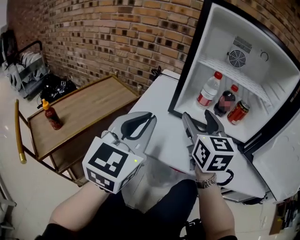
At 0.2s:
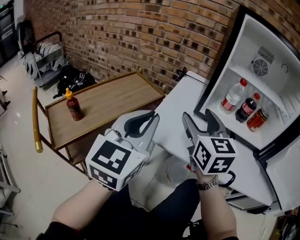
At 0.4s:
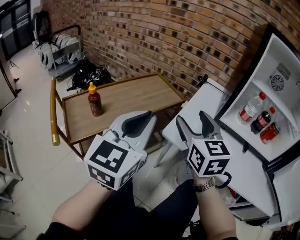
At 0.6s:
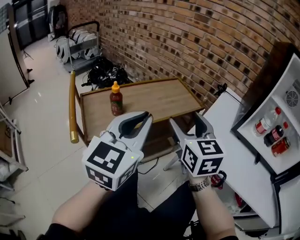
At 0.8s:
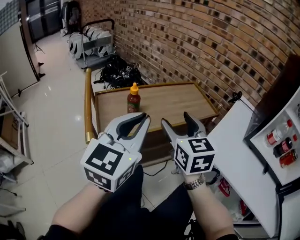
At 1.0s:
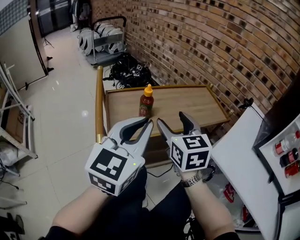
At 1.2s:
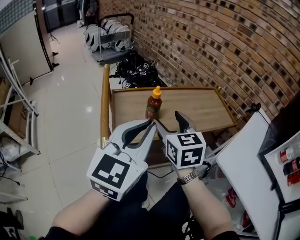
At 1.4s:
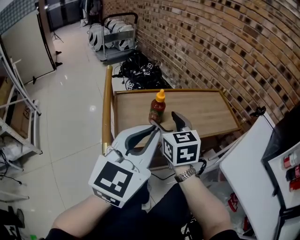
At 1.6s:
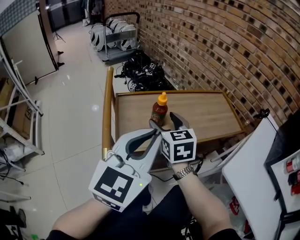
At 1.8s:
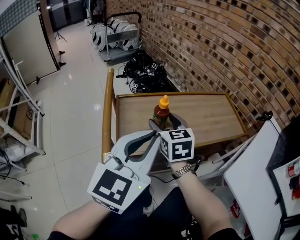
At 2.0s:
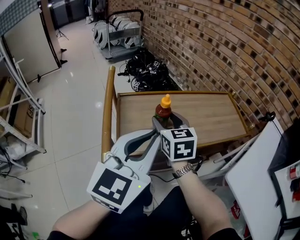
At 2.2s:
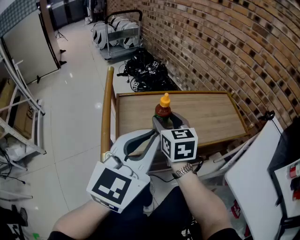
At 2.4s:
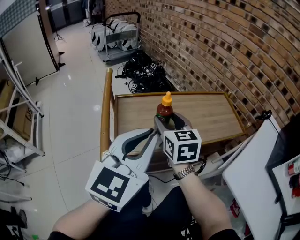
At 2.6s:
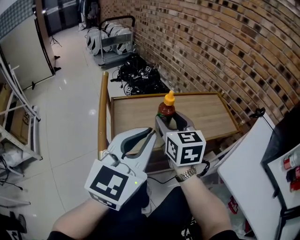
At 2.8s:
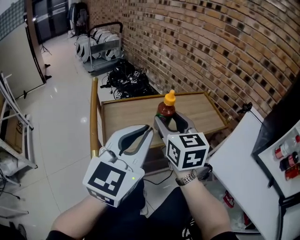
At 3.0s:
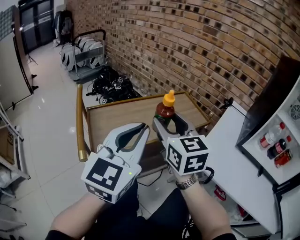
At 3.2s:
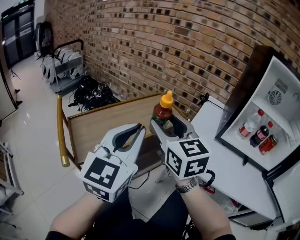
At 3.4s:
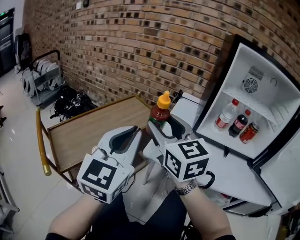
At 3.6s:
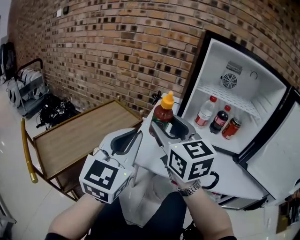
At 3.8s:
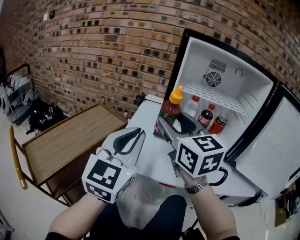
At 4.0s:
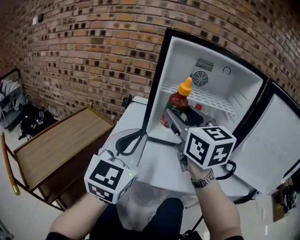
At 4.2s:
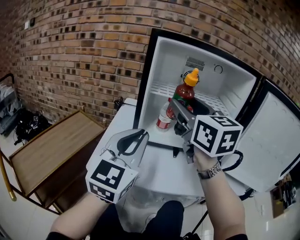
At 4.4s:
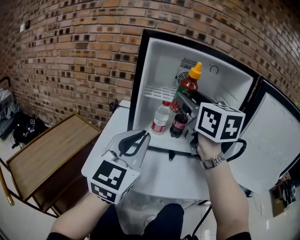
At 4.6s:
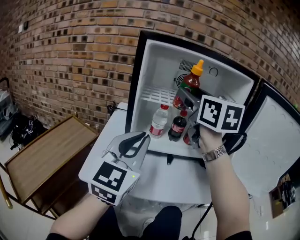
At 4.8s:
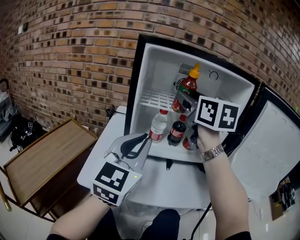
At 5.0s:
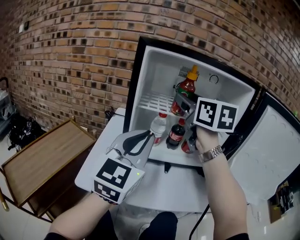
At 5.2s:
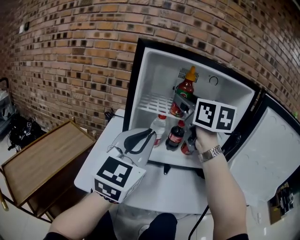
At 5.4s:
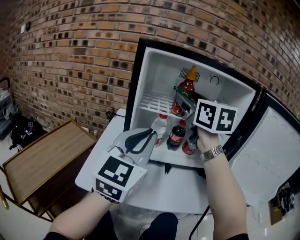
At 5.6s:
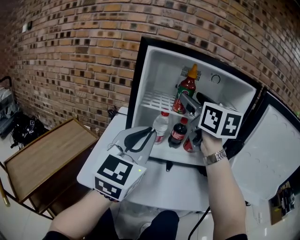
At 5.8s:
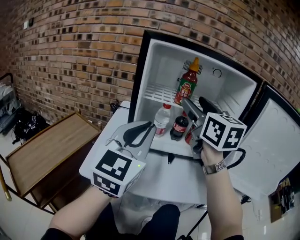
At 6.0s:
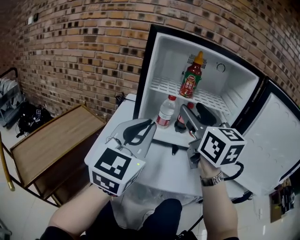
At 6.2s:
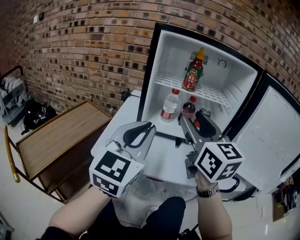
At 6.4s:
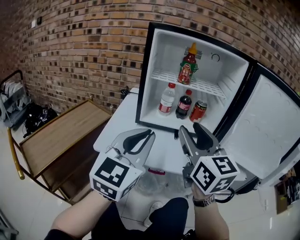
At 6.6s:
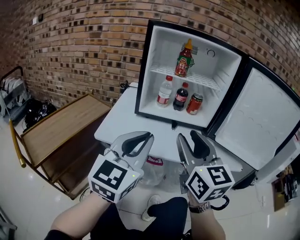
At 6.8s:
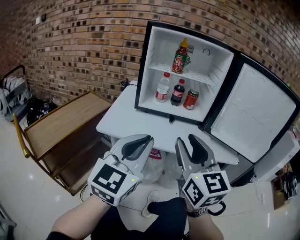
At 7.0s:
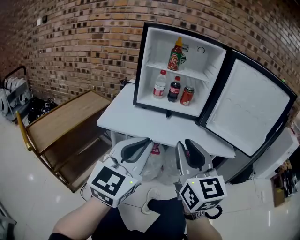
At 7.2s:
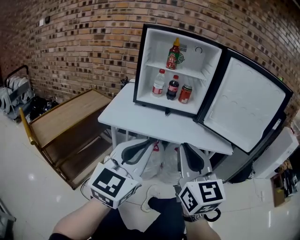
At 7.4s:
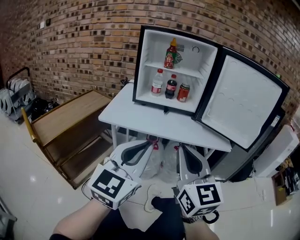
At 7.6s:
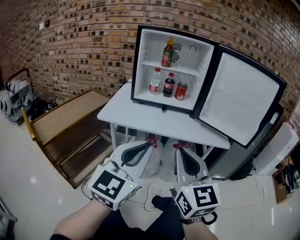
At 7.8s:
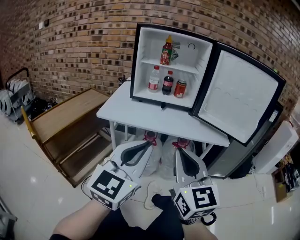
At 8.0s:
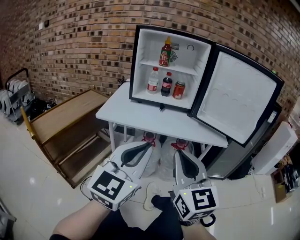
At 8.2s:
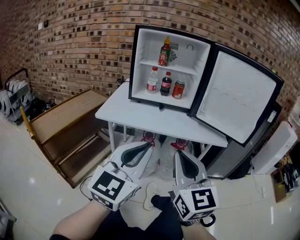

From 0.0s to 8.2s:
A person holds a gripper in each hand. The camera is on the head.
From 0.0s to 1.6s: The right gripper shifts by about 60 cm, and rotates some 50 degrees; the left gripper shifts by some 35 cm, and swivels approximately 40 degrees.
From 1.6s to 3.2s: The right gripper travels to the right, upward and backward by some 30 cm, and changes its angle by some 30 degrees; the left gripper heads to the right and upward, covering approximately 15 cm.
From 3.2s to 5.0s: The left gripper shifts by about 40 cm, and rotates roughly 30 degrees. Meanwhile the right gripper moves about 50 cm, and turns by approximately 30 degrees.
From 5.0s to 6.6s: The left gripper heads backward, covering approximately 20 cm. Meanwhile the right gripper shifts roughly 35 cm backward and downward.
From 6.6s to 8.2s: The right gripper heads backward, covering approximately 20 cm, and closes. Meanwhile the left gripper shifts roughly 20 cm backward and to the right.

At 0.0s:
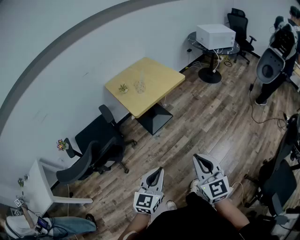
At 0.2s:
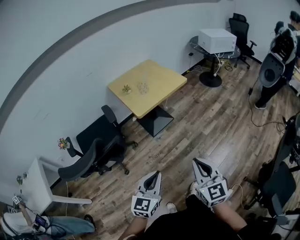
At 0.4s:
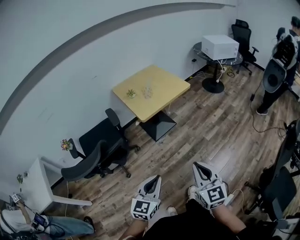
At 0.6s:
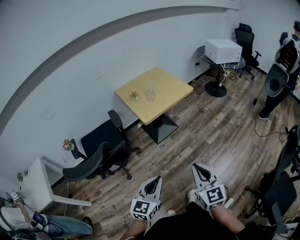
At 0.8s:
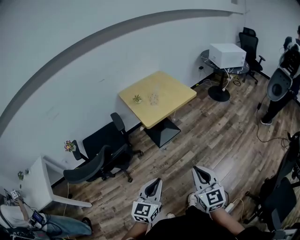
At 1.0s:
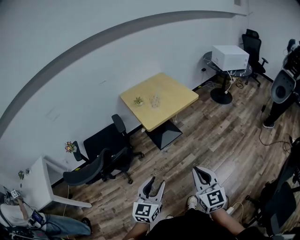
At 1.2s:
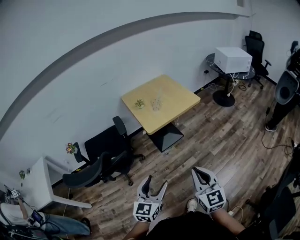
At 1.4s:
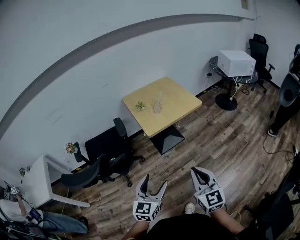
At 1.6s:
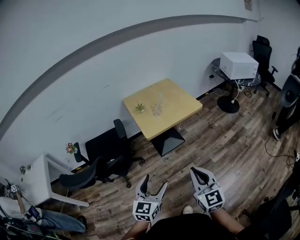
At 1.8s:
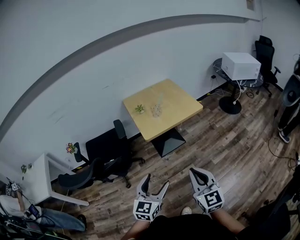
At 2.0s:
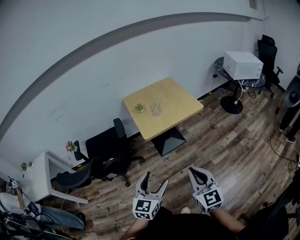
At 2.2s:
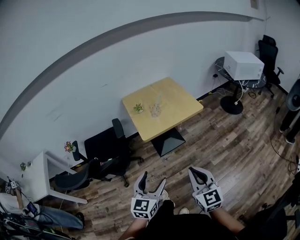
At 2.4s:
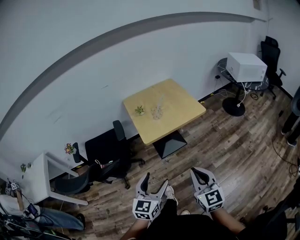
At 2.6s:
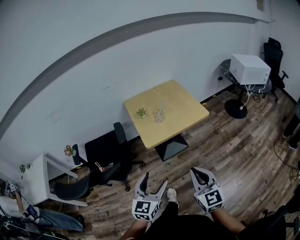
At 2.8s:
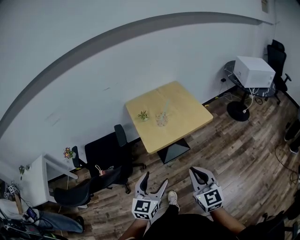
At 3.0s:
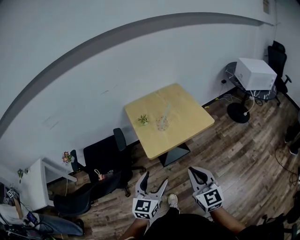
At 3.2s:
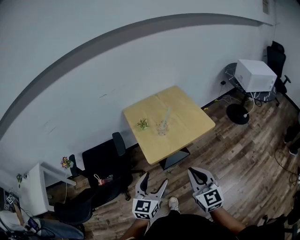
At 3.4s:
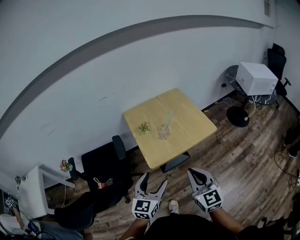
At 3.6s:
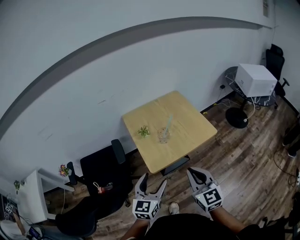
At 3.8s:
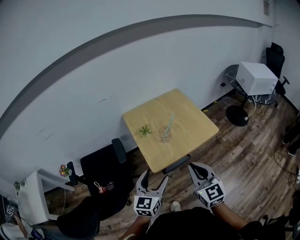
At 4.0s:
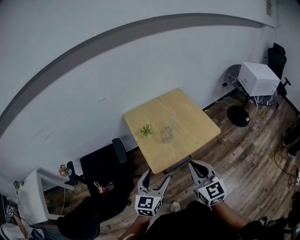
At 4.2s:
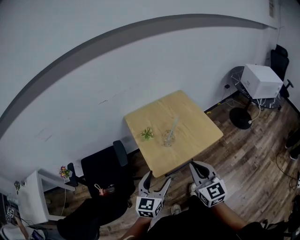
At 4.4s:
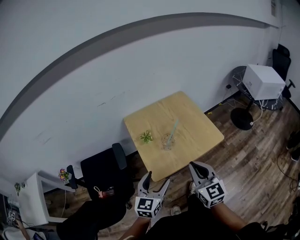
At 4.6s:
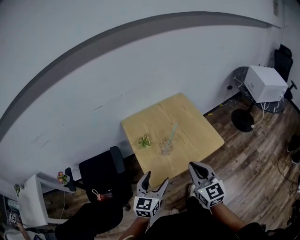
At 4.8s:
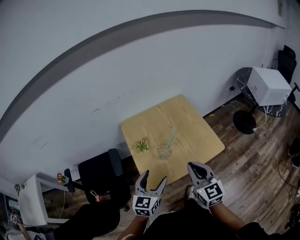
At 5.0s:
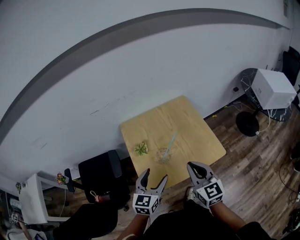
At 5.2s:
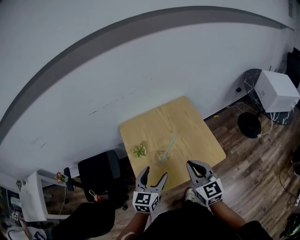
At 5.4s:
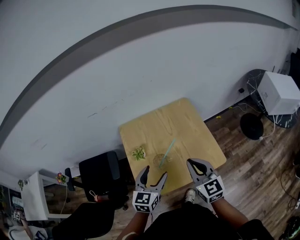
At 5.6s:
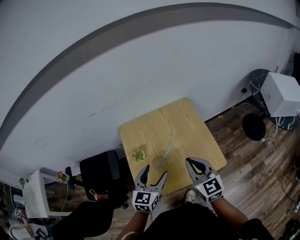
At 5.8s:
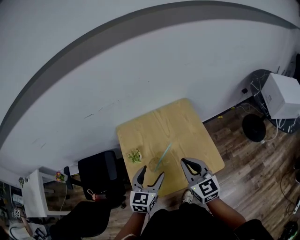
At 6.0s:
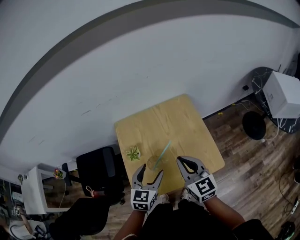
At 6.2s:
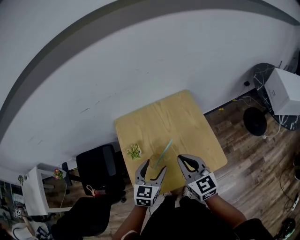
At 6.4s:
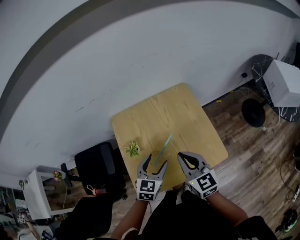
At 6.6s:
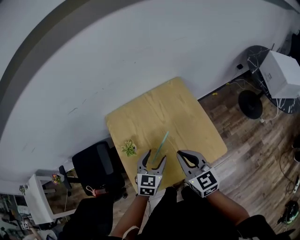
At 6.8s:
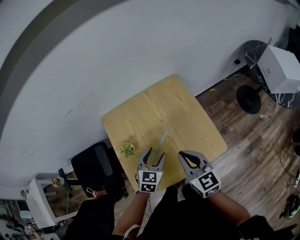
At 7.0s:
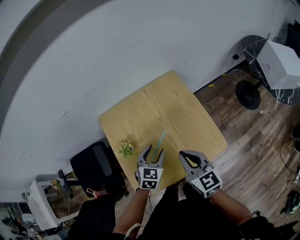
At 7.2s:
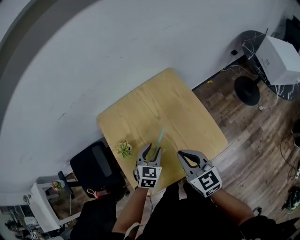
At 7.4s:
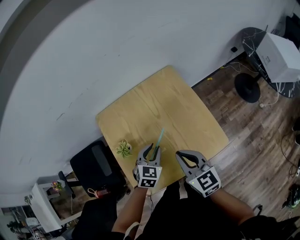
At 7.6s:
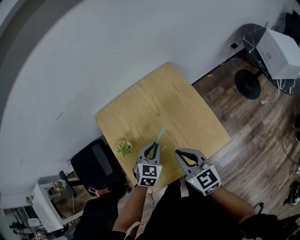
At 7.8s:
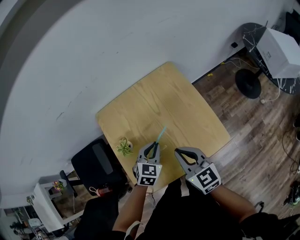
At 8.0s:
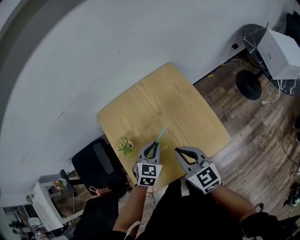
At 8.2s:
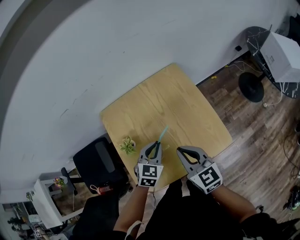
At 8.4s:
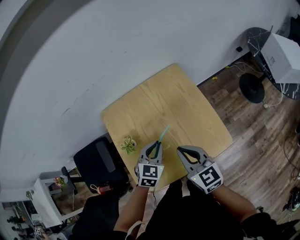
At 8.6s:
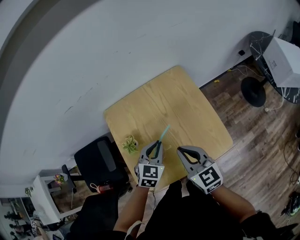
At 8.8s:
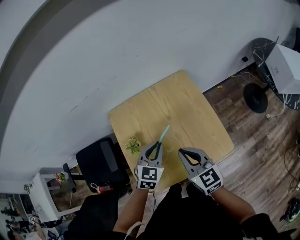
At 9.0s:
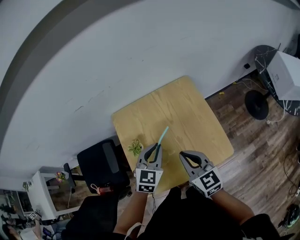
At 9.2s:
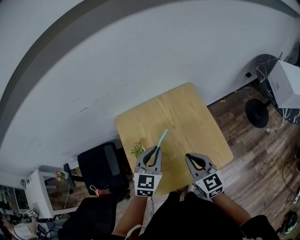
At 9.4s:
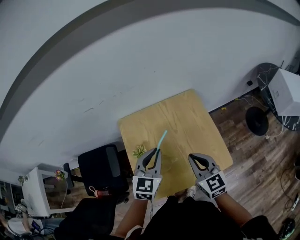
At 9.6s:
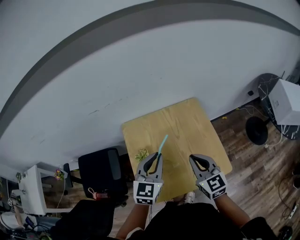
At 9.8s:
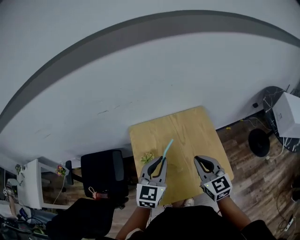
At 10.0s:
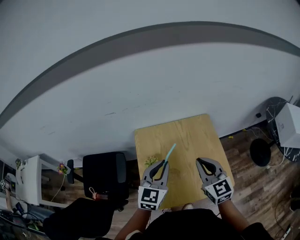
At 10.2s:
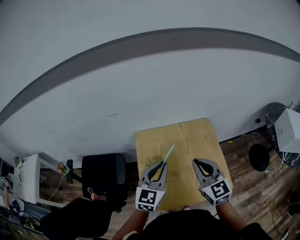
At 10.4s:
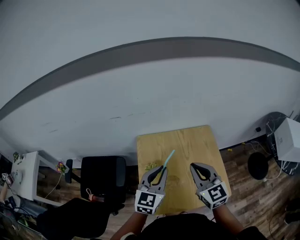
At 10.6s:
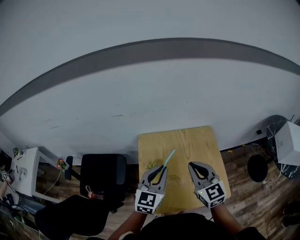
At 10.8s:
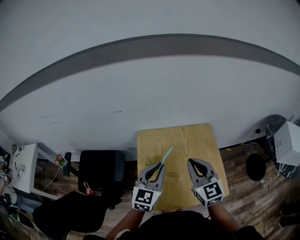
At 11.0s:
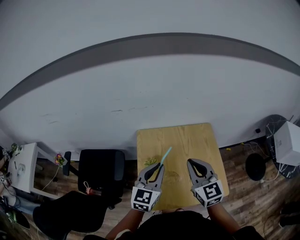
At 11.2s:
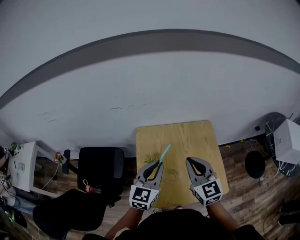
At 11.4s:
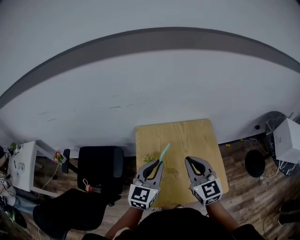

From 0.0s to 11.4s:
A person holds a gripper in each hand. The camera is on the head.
From 0.0s to 1.4s: Both grippers move forward, some 5 cm. The left gripper opens up.
From 1.4s to 2.8s: Both grippers move forward, about 20 cm.
From 2.8s to 4.2s: The grippers both shift forward by about 20 cm.
From 4.2s to 5.6s: Both grippers move forward and to the right, about 25 cm.
From 5.6s to 7.2s: The left gripper moves downward and forward, approximately 20 cm, swivels some 30 degrees, and closes up. The right gripper heads downward, covering about 10 cm.
From 7.2s to 8.6s: The left gripper moves upward, about 5 cm, and closes.
From 8.6s to 10.0s: The right gripper goes roughly 10 cm upward, while the left gripper heads upward and to the left, covering roughly 20 cm, and rotates about 30 degrees.
From 10.0s to 11.4s: The right gripper heads to the left, covering some 5 cm.

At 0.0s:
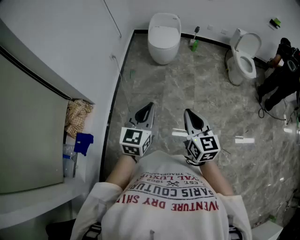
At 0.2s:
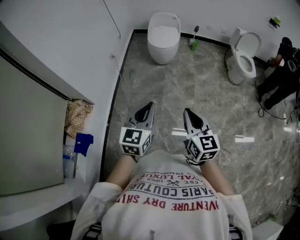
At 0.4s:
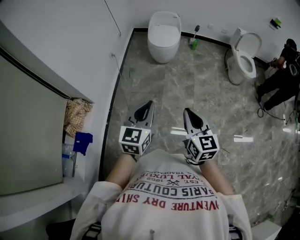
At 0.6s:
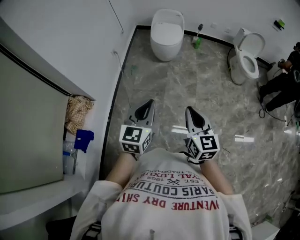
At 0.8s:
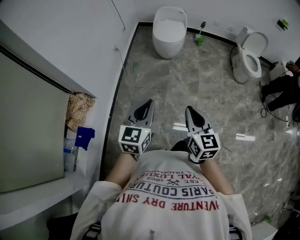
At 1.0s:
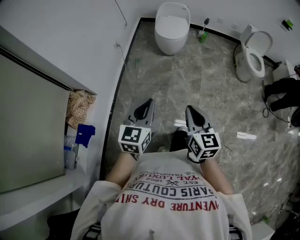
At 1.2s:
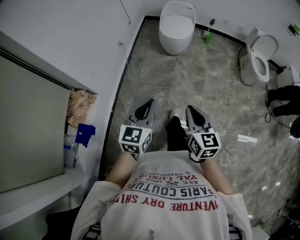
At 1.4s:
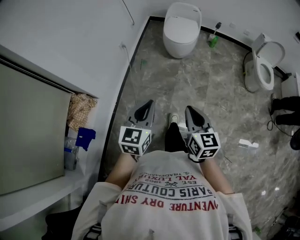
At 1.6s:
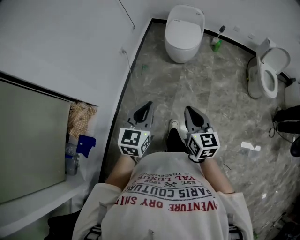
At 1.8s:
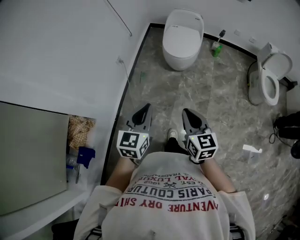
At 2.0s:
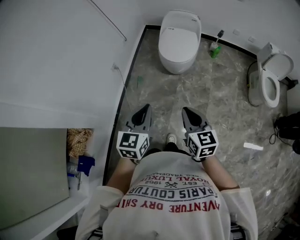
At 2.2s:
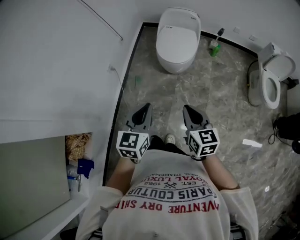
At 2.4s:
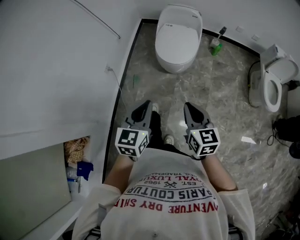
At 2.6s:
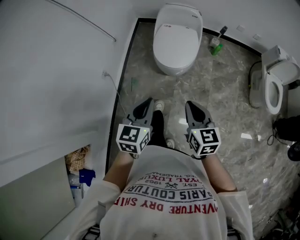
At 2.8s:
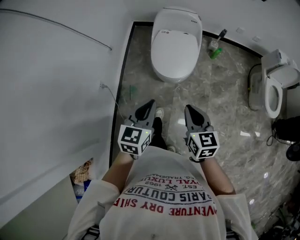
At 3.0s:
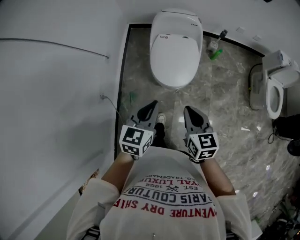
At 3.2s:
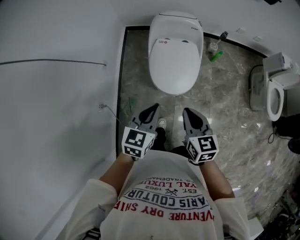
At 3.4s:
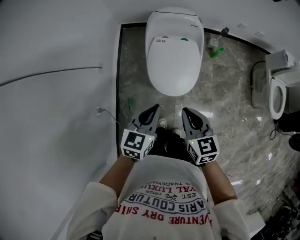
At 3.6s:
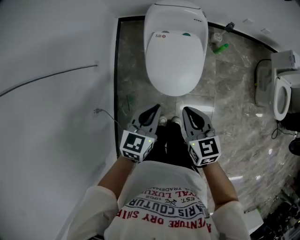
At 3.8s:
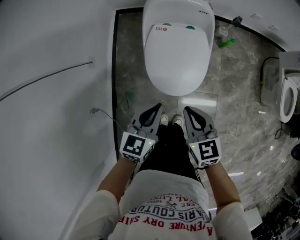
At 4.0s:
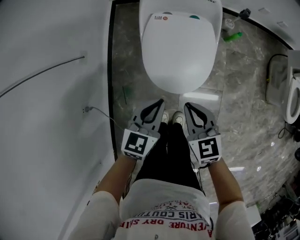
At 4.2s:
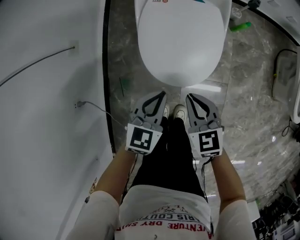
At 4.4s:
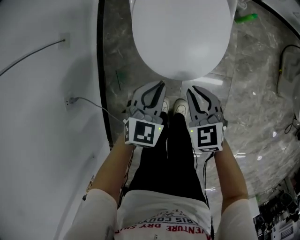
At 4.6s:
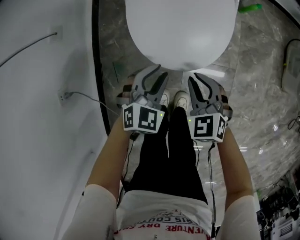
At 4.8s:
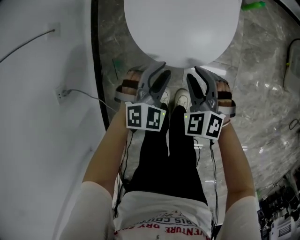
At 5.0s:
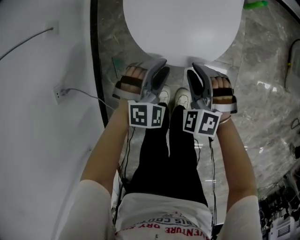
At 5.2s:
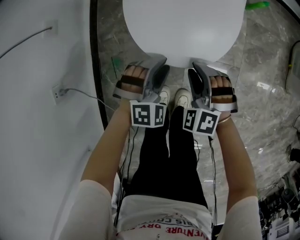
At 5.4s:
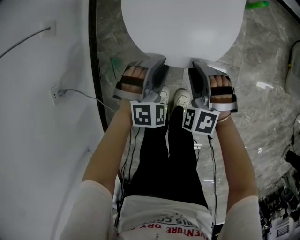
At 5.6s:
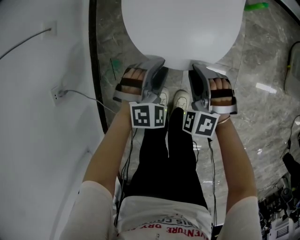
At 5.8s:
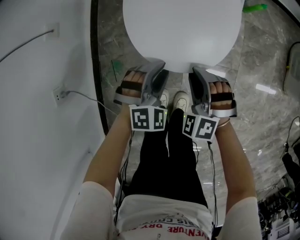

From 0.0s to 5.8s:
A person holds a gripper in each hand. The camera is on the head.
From 0.0s to 1.4s: Both grippers move forward, approximately 15 cm.
From 1.4s to 2.8s: The two grippers travel together, forward, approximately 60 cm.
From 2.8s to 4.4s: The grippers both shift downward and forward by some 50 cm. The right gripper swivels approximately 30 degrees. The left gripper turns by roughly 30 degrees.
From 4.4s to 5.8s: Both grippers move downward, about 10 cm. The left gripper turns by roughly 40 degrees, and opens up; the right gripper twists some 50 degrees counterclockwise, seen from behind.
